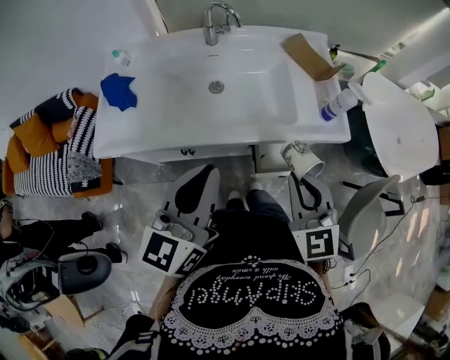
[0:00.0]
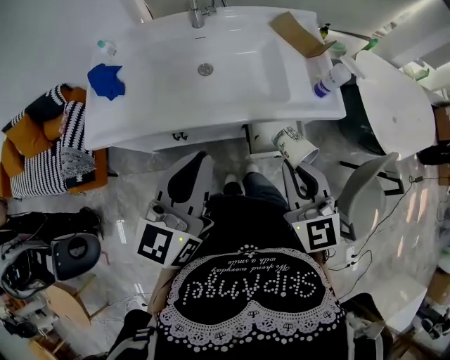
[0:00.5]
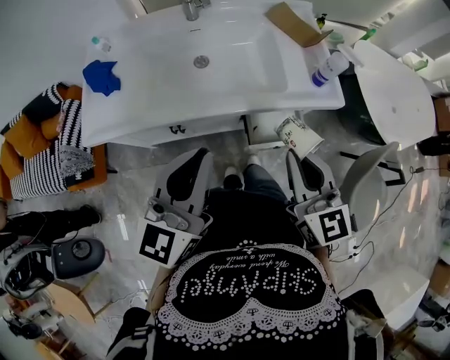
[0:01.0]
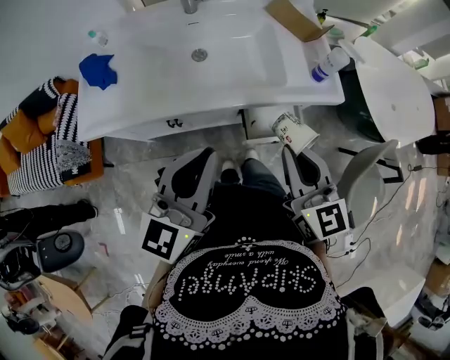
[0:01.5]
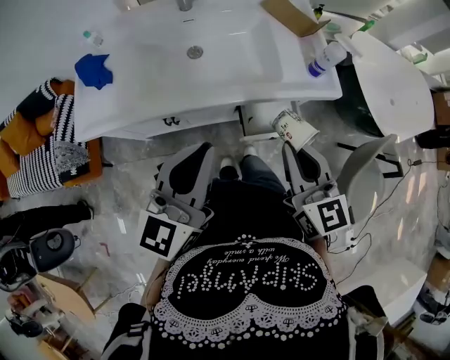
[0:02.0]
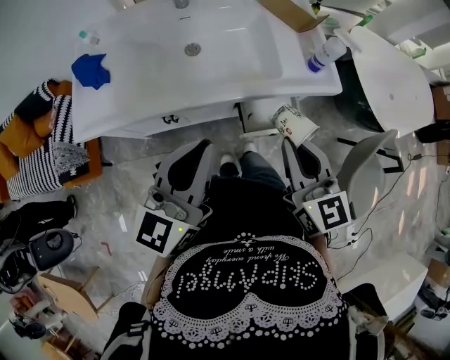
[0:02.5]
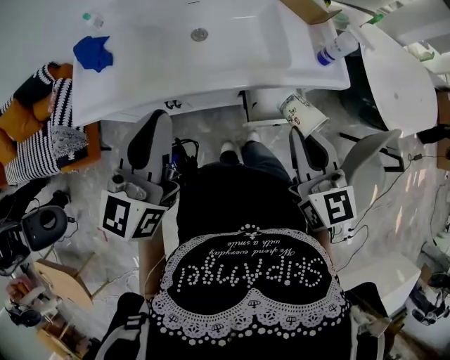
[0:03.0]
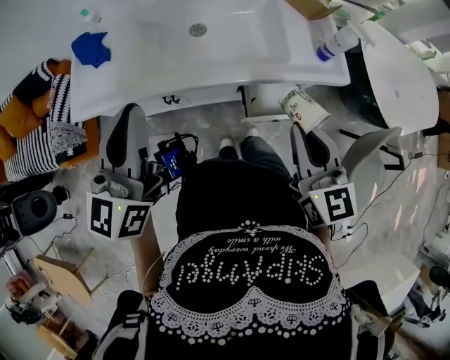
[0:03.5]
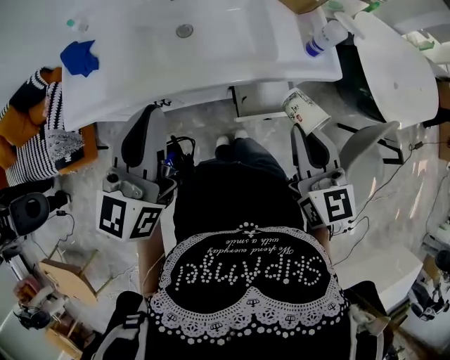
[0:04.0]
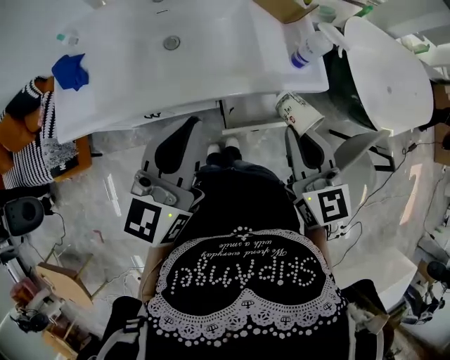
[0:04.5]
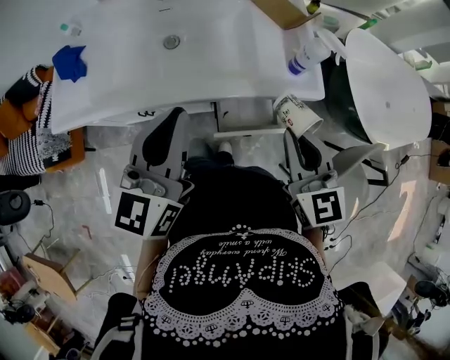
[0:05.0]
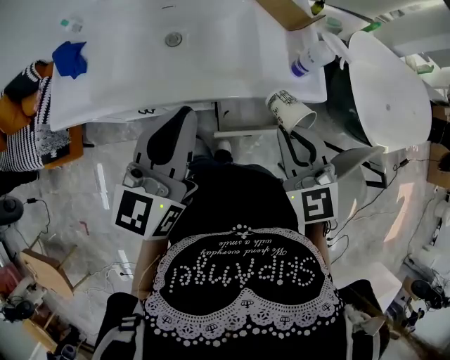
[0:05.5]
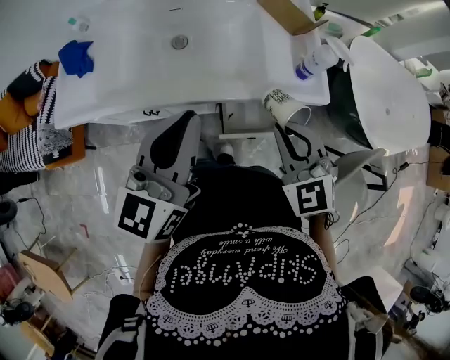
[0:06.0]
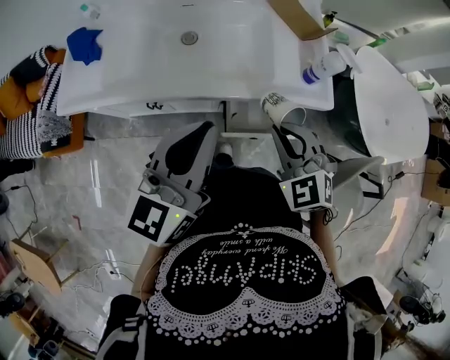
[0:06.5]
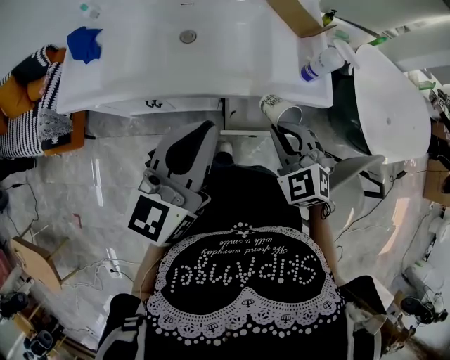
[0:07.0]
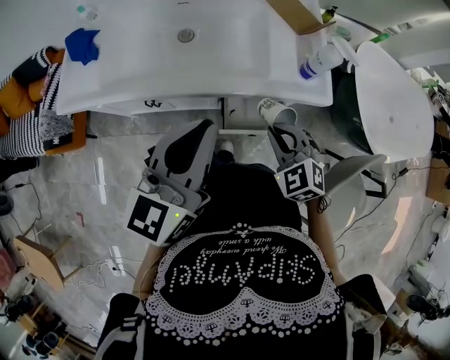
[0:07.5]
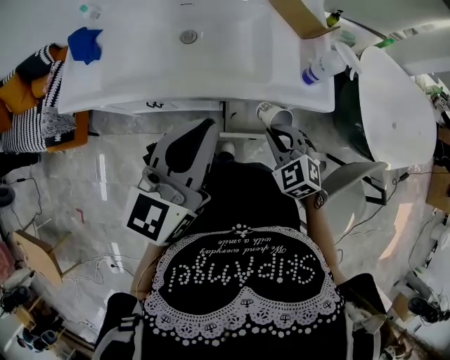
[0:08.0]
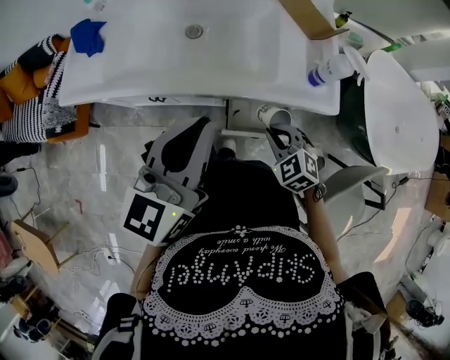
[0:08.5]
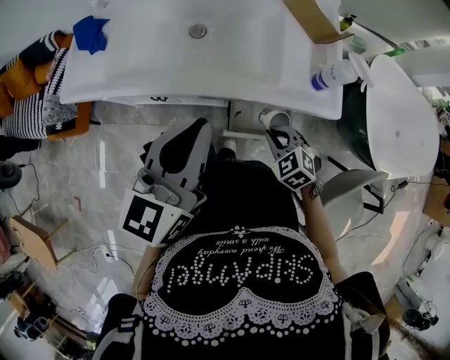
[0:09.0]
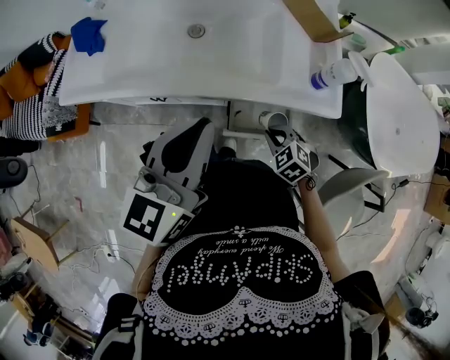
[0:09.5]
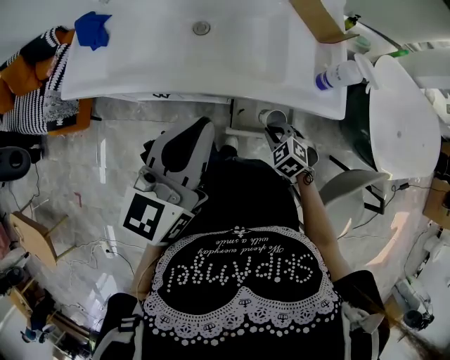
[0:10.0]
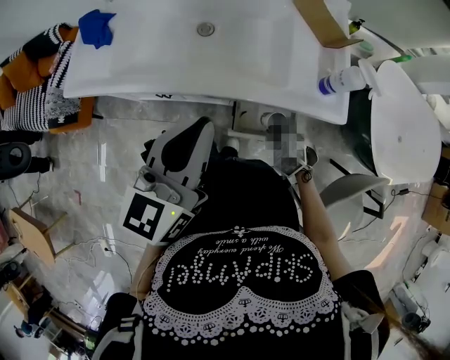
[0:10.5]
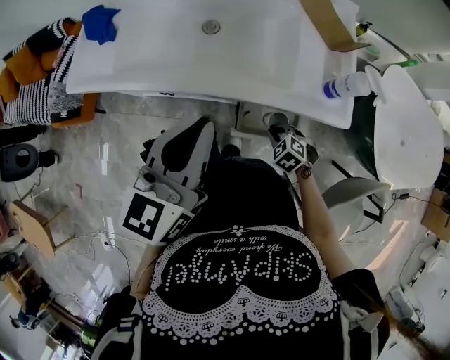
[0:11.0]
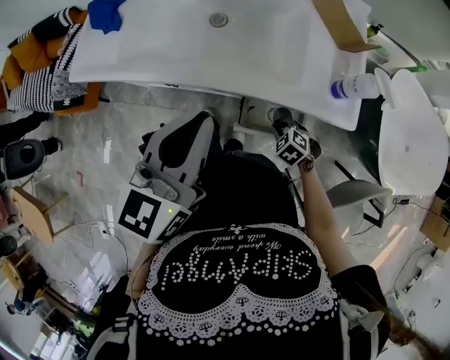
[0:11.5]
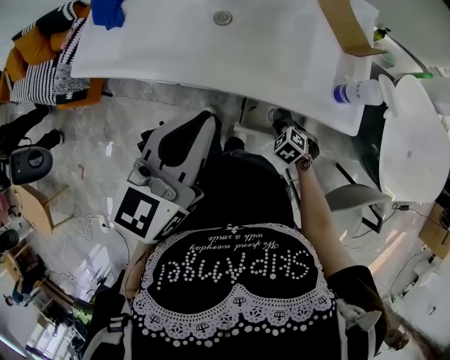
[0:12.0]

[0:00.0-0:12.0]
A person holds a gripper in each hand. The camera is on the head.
0:00.0 to 0:02.0: The right gripper changes its angle by approximately 20 degrees; the left gripper ends up some 5 cm from where it was.
0:04.0 to 0:06.0: The left gripper shifts some 10 cm to the right, while the right gripper ends up roughly 5 cm from where it was, and rolls counterclockwise, seen from behind, by approximately 40 degrees.
0:06.0 to 0:08.0: The right gripper travels downward by about 15 cm.
0:08.0 to 0:10.0: The right gripper heads downward, covering about 15 cm.
0:10.0 to 0:12.0: The right gripper moves downward, some 10 cm.

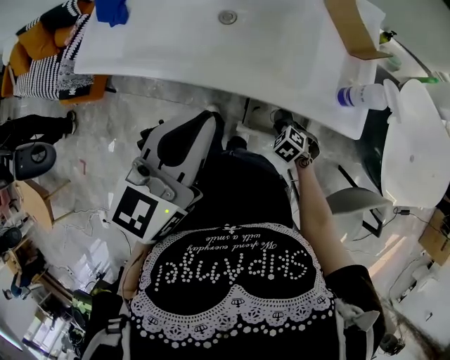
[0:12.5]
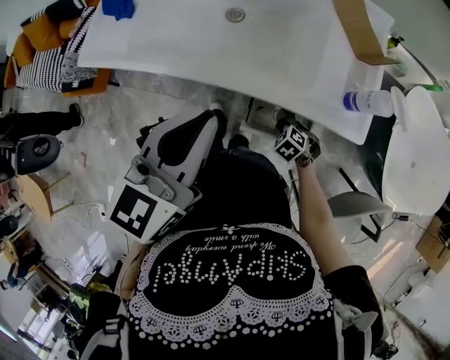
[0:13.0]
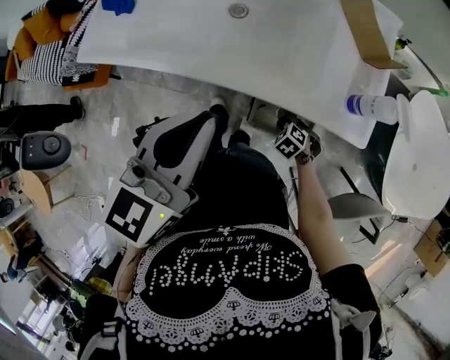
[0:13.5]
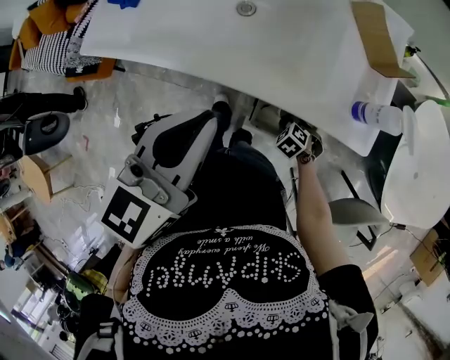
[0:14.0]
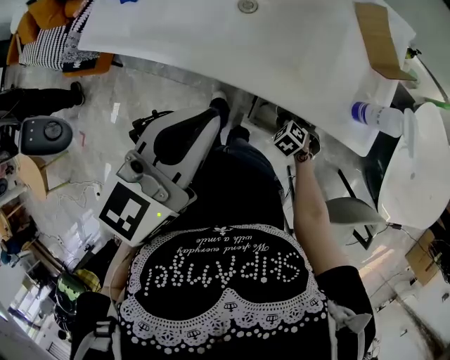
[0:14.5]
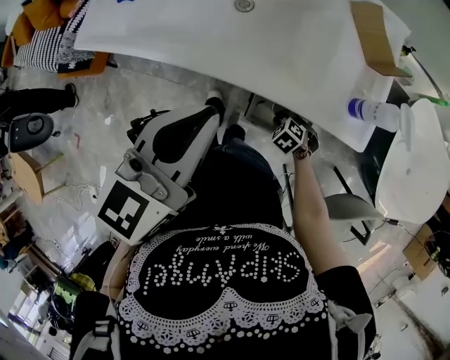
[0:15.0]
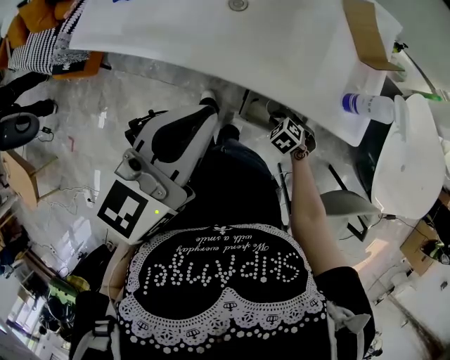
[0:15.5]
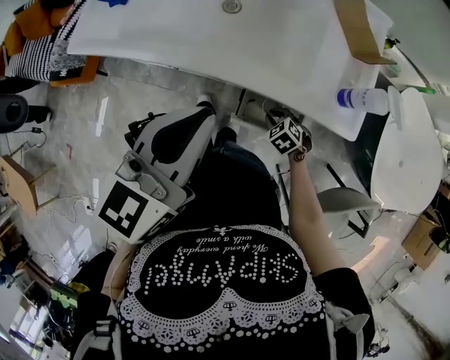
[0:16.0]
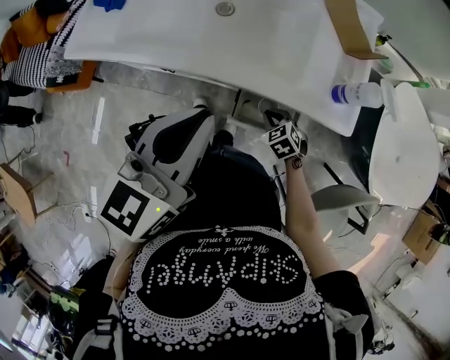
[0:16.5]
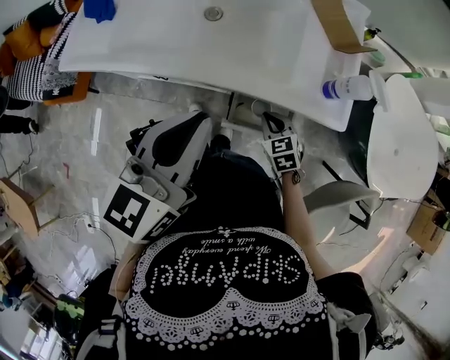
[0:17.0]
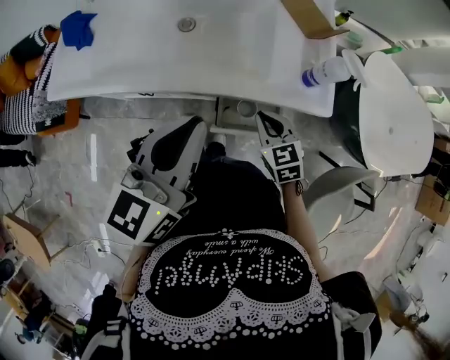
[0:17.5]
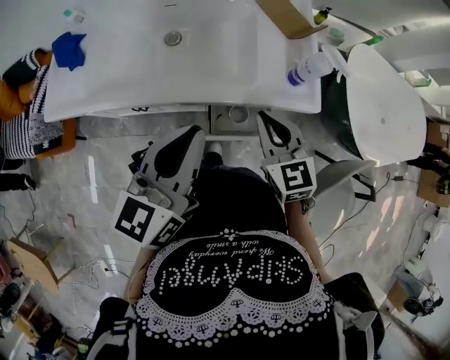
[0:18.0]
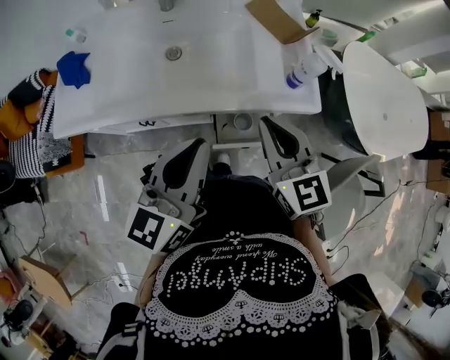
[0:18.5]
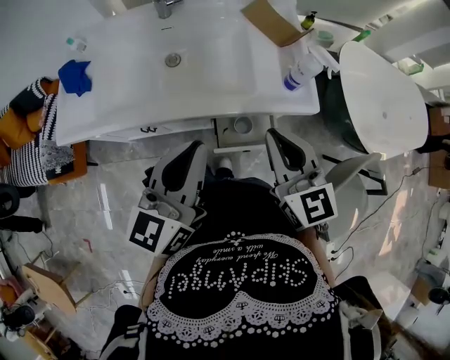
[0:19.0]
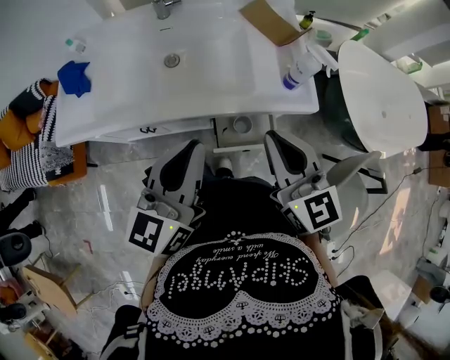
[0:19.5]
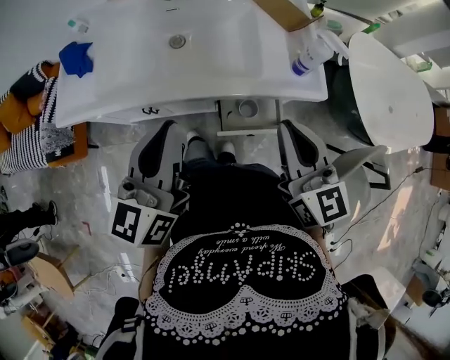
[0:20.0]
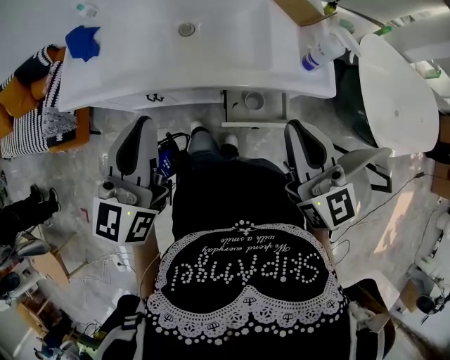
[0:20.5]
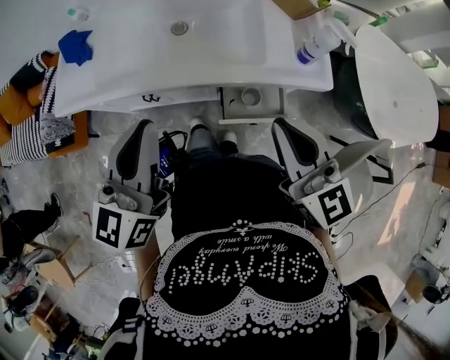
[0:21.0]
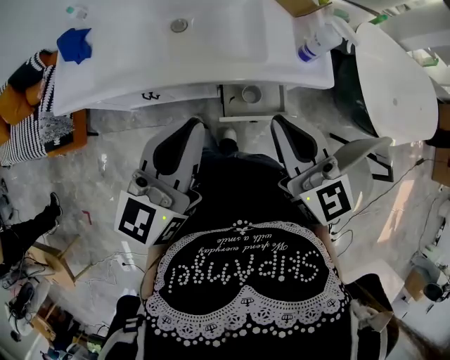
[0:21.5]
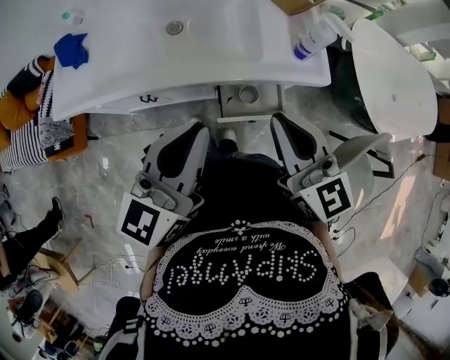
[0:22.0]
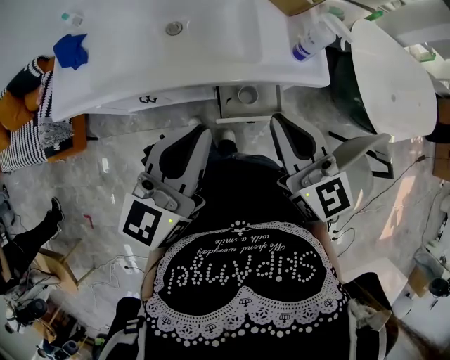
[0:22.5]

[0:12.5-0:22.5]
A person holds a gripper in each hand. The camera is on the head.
0:12.5 to 0:14.5: There are only small adjustments of the grippers.
0:14.5 to 0:16.5: The right gripper moves upward, about 10 cm, and turns by about 20 degrees.
0:16.5 to 0:18.5: The right gripper goes roughly 35 cm upward, and tilts its fingers approximately 50 degrees upward.
0:18.5 to 0:20.5: The right gripper is displaced backward by some 5 cm. The left gripper shifts approximately 10 cm to the left.
0:20.5 to 0:22.5: The left gripper heads to the right, covering about 10 cm.

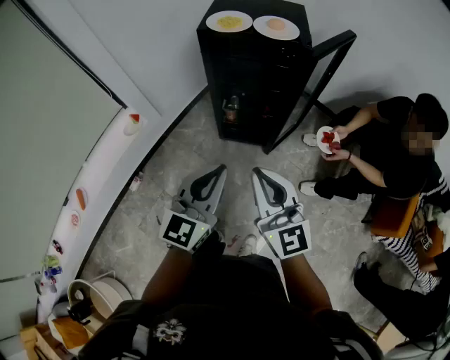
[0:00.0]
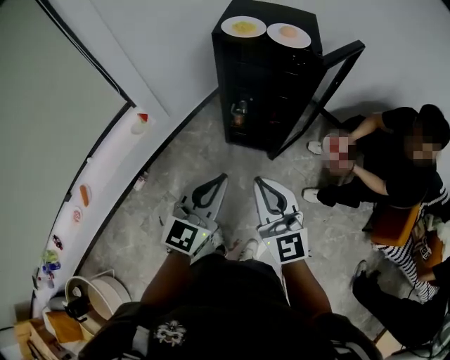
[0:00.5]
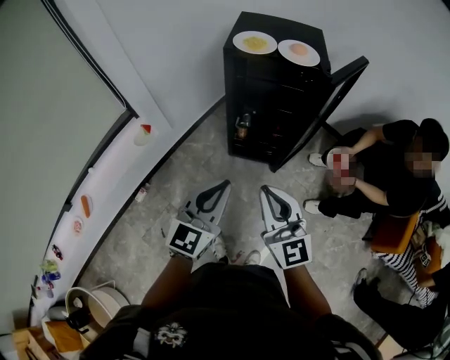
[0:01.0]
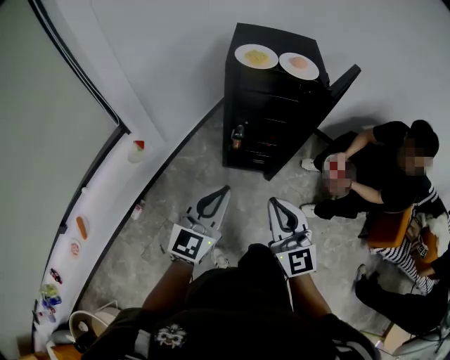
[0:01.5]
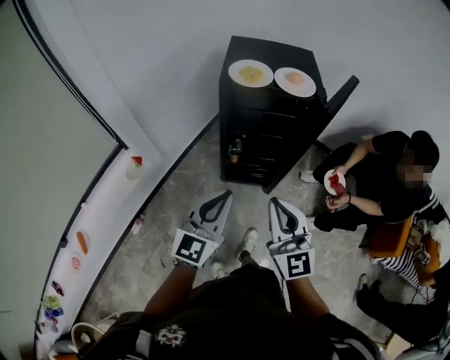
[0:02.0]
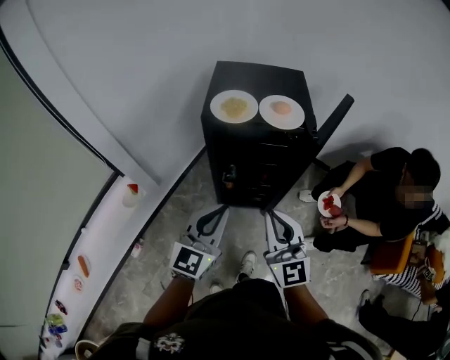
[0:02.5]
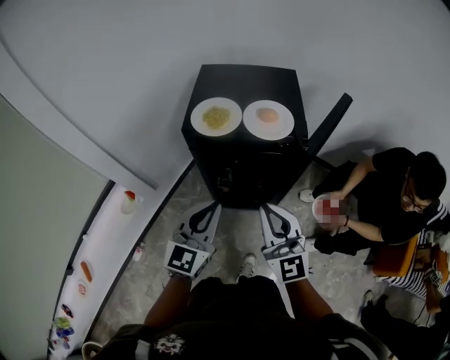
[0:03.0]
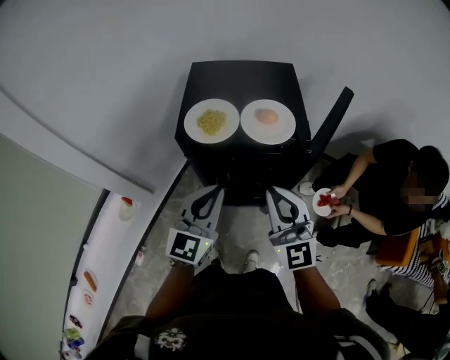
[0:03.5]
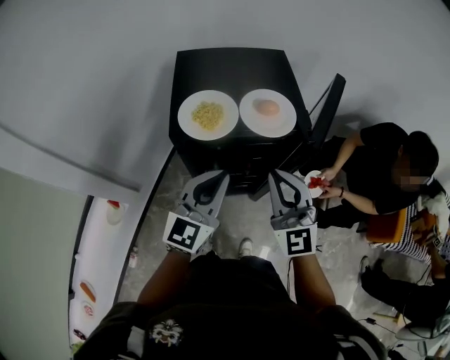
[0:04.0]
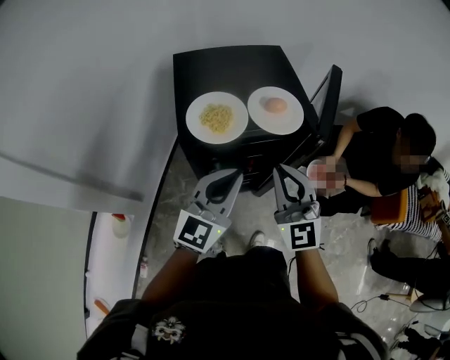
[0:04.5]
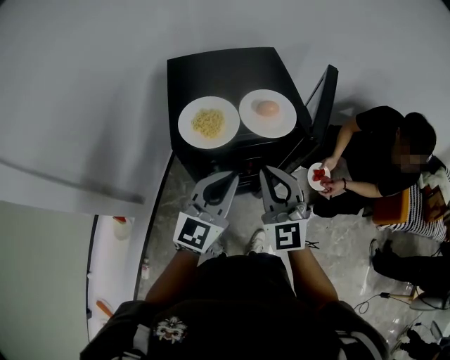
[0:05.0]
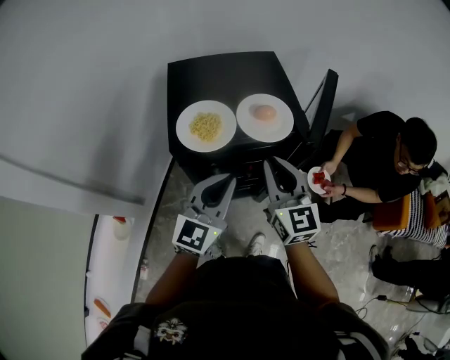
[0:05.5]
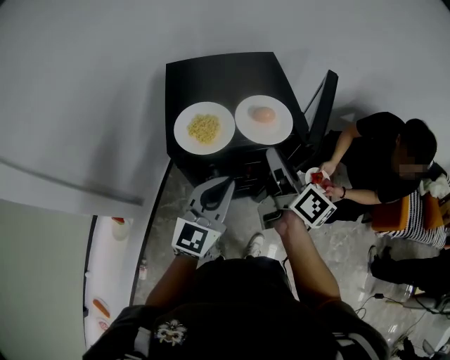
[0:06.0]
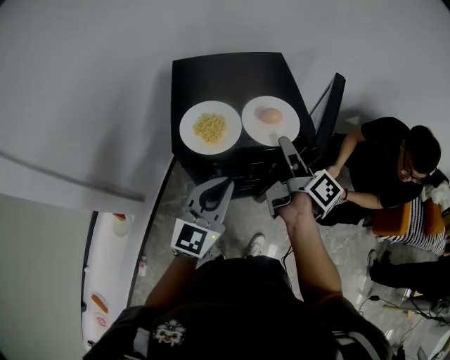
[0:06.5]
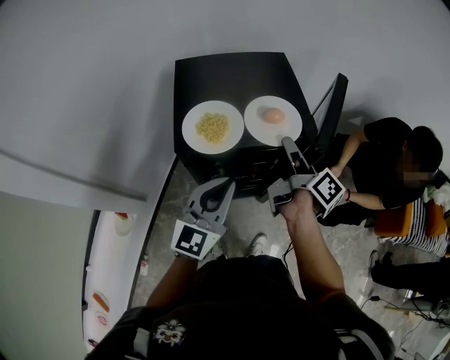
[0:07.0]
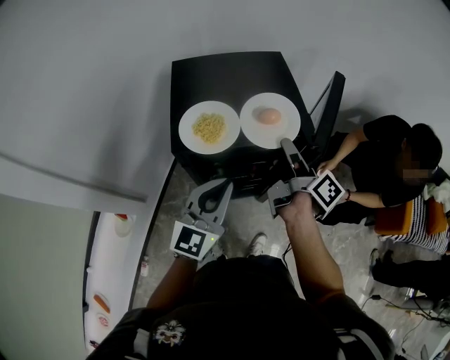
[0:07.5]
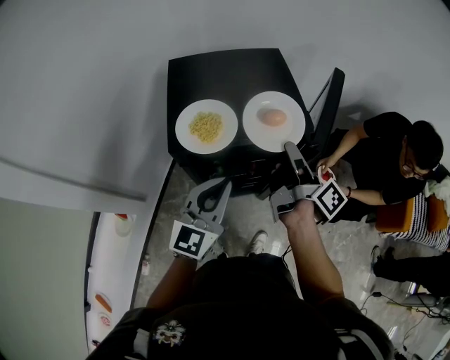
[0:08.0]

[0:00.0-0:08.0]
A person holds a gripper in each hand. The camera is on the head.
0:00.0 to 0:02.0: The two grippers go about 10 cm forward and to the left.
0:02.0 to 0:04.0: Both grippers move forward, about 25 cm.
0:04.0 to 0:06.0: The right gripper moves forward, about 10 cm, rotates around the line of its fingers by roughly 70 degrees, clockwise from behind, and opens its fingers.
0:06.0 to 0:08.0: The right gripper rotates some 30 degrees, and closes up.
